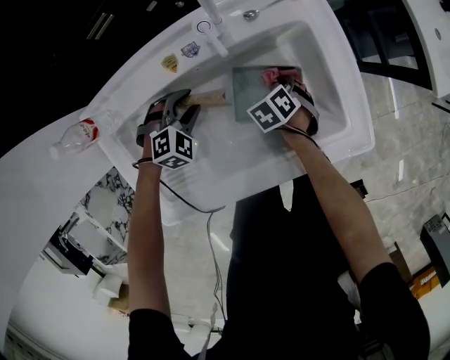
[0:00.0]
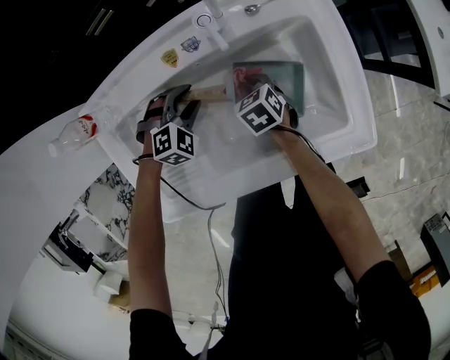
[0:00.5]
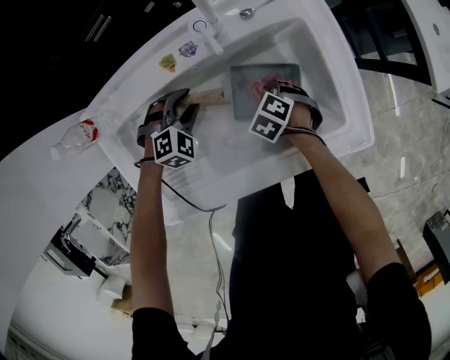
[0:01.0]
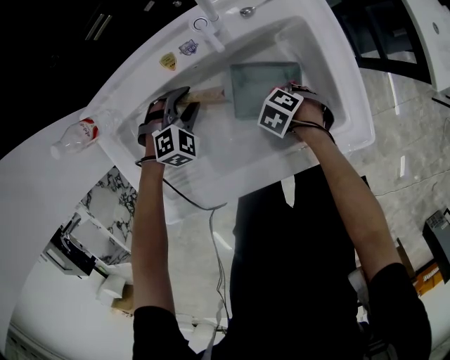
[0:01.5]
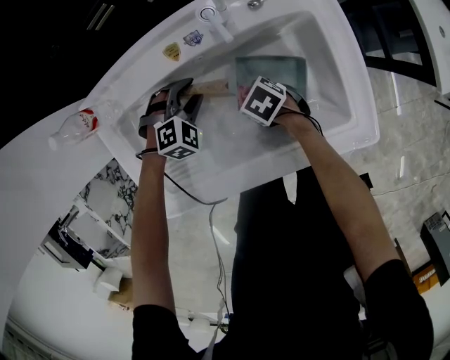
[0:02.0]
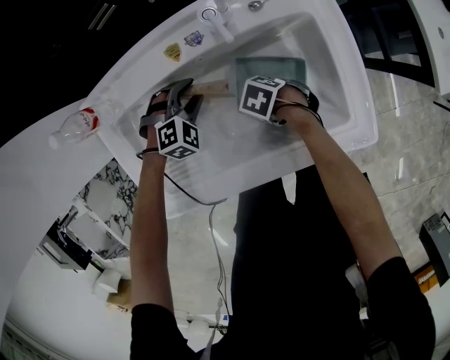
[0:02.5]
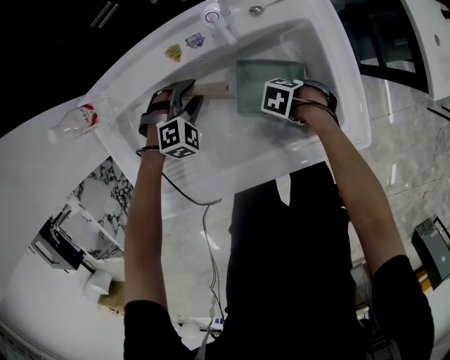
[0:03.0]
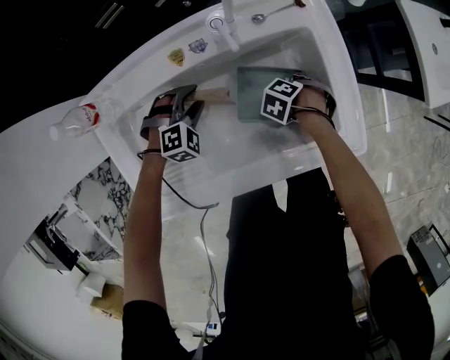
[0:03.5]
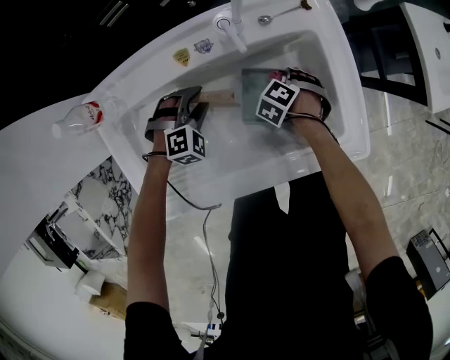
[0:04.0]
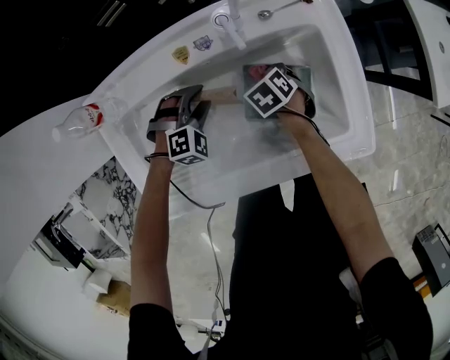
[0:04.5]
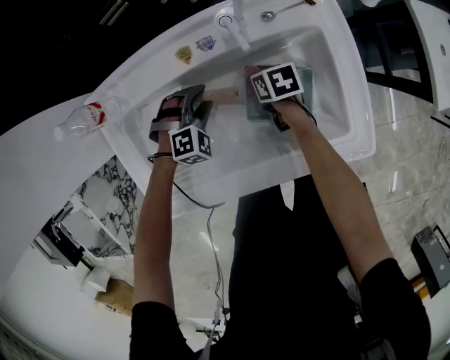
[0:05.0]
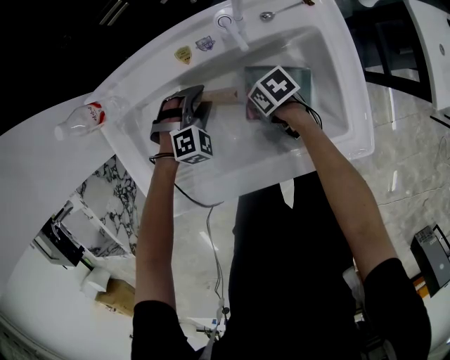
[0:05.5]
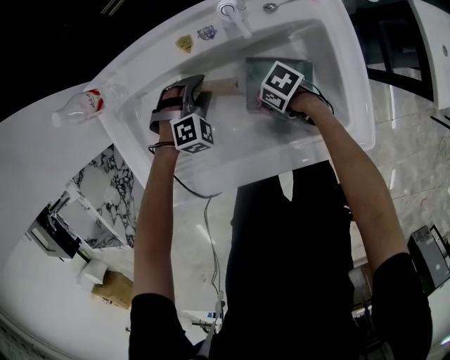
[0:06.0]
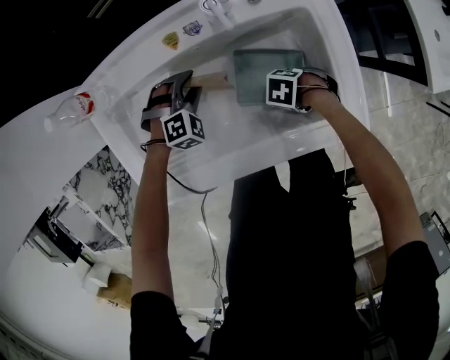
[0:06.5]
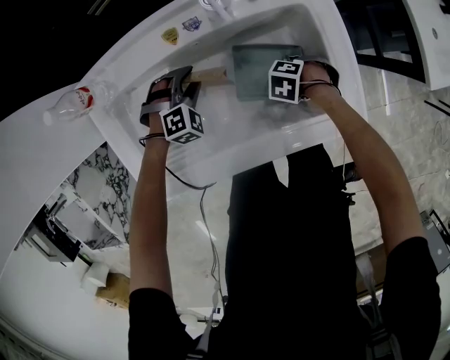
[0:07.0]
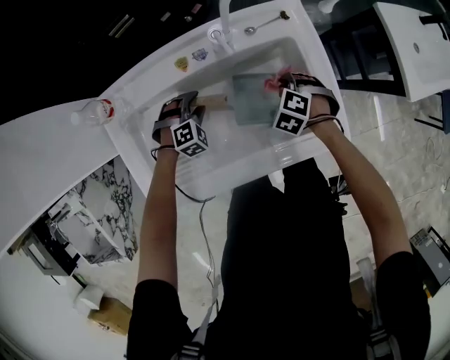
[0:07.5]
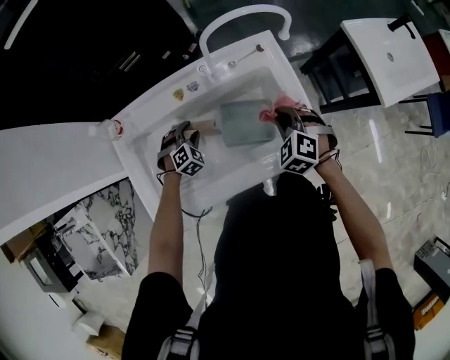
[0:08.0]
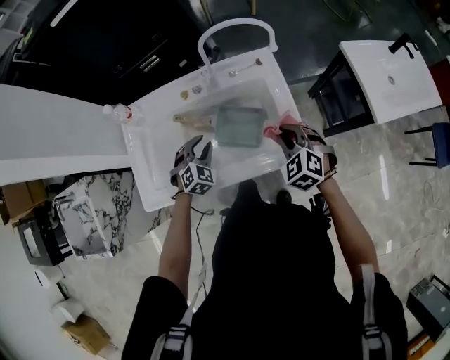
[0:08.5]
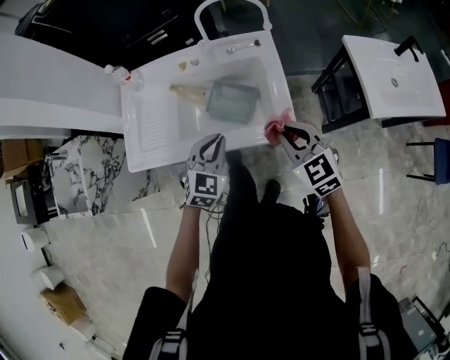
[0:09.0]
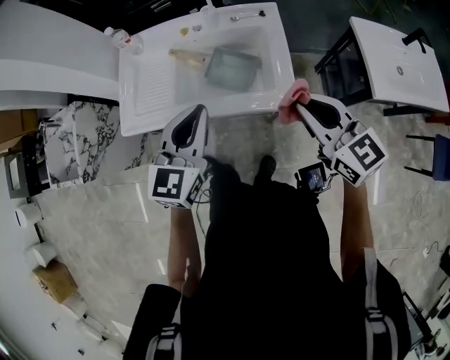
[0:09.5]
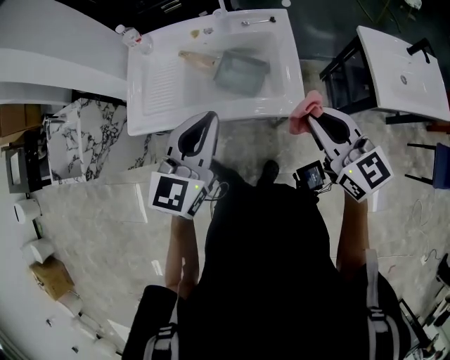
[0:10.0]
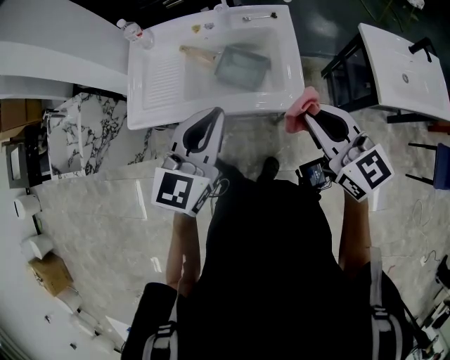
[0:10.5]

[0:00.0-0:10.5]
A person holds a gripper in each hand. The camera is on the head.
0:00.0 to 0:02.0: The right gripper ends up some 15 cm from where it was, and rotates approximately 40 degrees.
0:02.0 to 0:04.0: The right gripper changes place by approximately 15 cm, and swivels about 50 degrees.
0:04.0 to 0:06.5: The right gripper ends up about 10 cm from where it was, and swivels some 40 degrees.
0:06.5 to 0:08.5: The right gripper moves upward, roughly 30 cm, and rotates about 70 degrees, while the left gripper shifts some 15 cm upward, and rotates roughly 30 degrees.
0:08.5 to 0:10.5: Both grippers move upward and backward, roughly 30 cm. The right gripper tips its fingers upward by about 40 degrees, while the left gripper tips its fingers upward by roughly 30 degrees, and closes up.

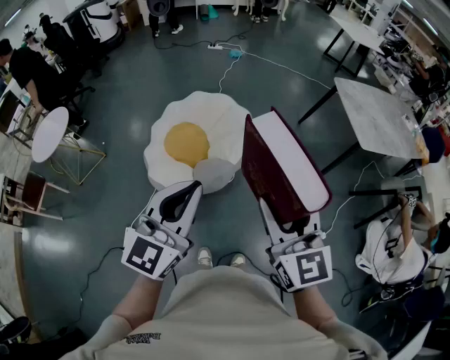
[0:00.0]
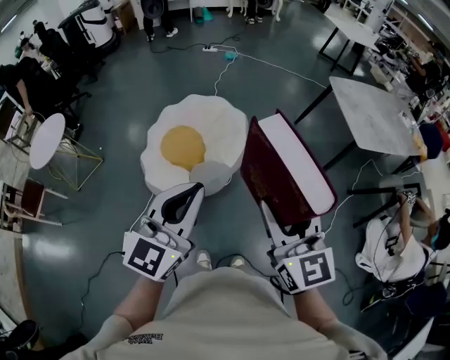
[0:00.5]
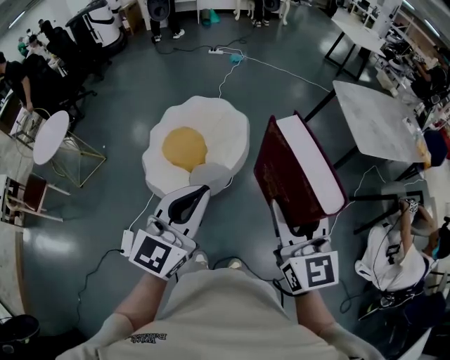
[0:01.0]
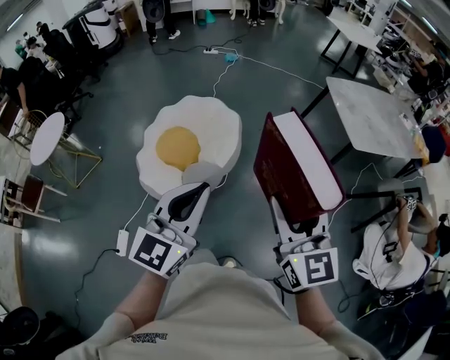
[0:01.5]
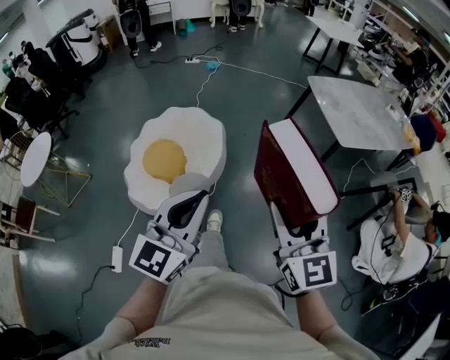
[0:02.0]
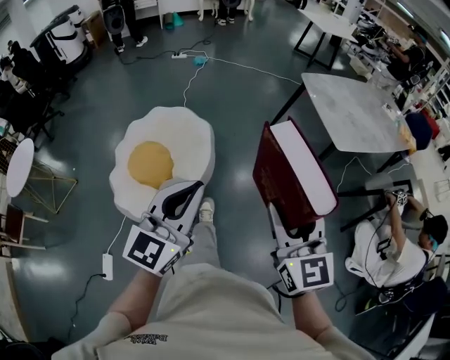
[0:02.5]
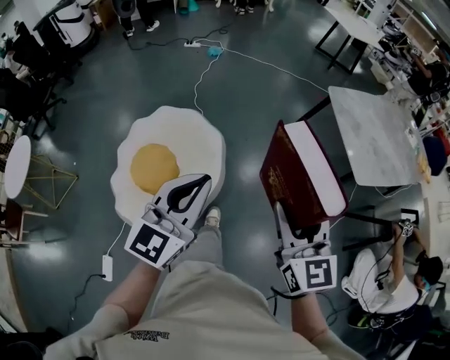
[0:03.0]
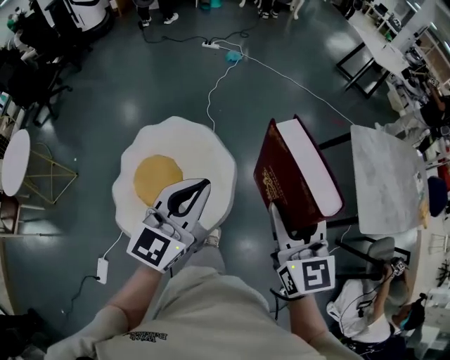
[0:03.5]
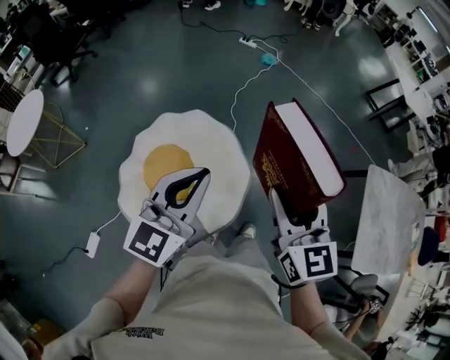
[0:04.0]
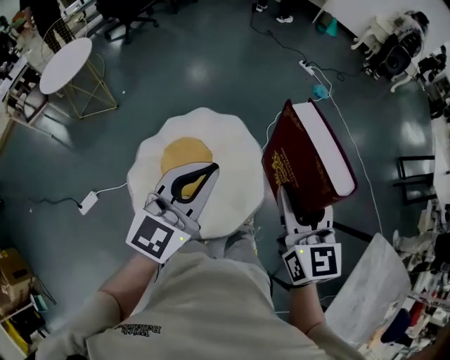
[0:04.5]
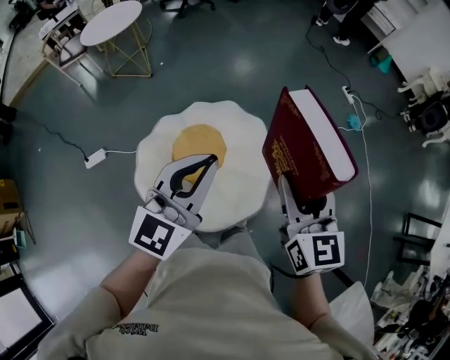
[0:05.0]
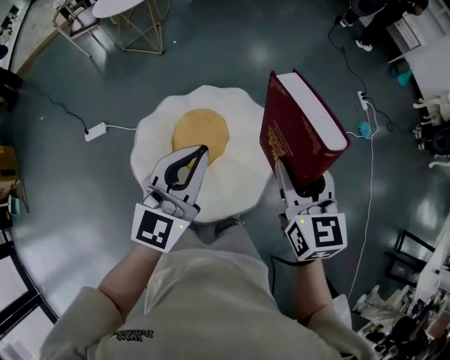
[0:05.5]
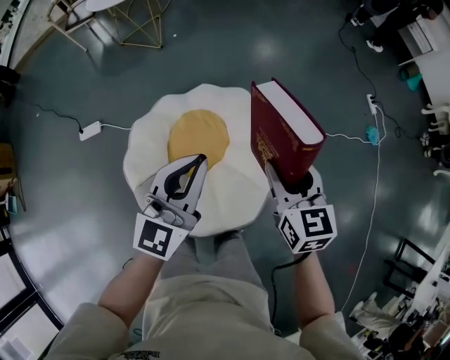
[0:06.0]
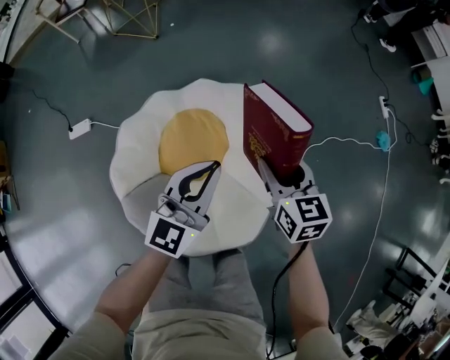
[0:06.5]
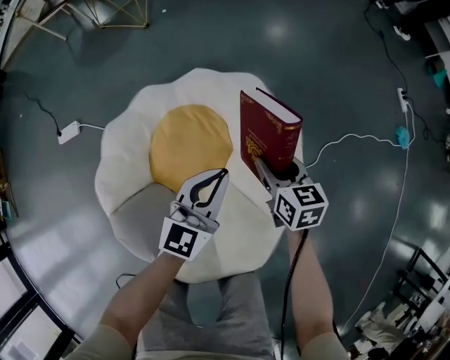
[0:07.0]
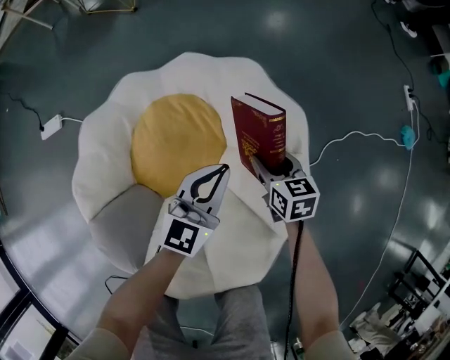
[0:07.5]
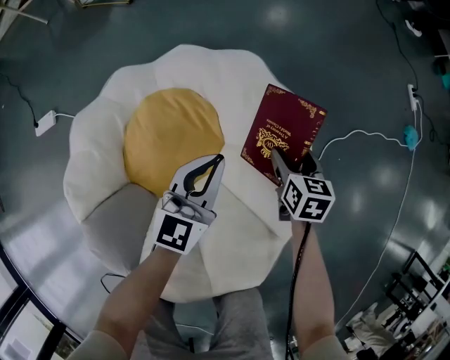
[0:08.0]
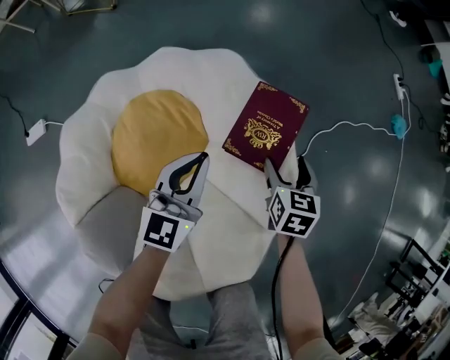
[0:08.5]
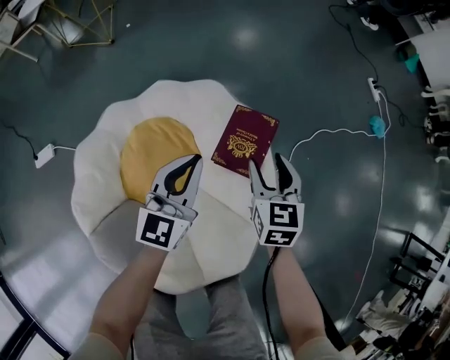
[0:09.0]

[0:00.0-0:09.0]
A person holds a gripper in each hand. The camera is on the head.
0:00.0 to 0:02.0: The two grippers go roughly 15 cm to the right.
0:02.0 to 0:04.5: The two grippers travel together, about 70 cm. The left gripper changes its angle by roughly 40 degrees. The right gripper swivels approximately 40 degrees.
0:04.5 to 0:07.0: The grippers both shift downward by some 60 cm. The right gripper turns by approximately 50 degrees, while the left gripper turns by some 40 degrees.
0:07.0 to 0:09.0: The right gripper travels to the right by some 10 cm, goes downward and returns, roughly 15 cm each way, and rotates about 30 degrees. Meanwhile the left gripper goes downward and returns, about 15 cm each way.

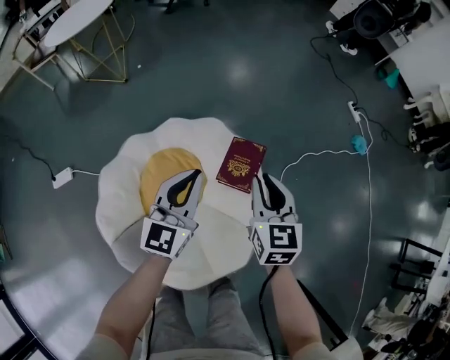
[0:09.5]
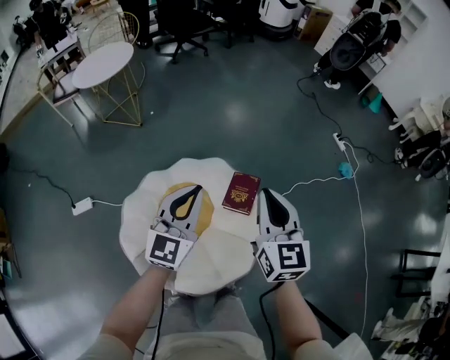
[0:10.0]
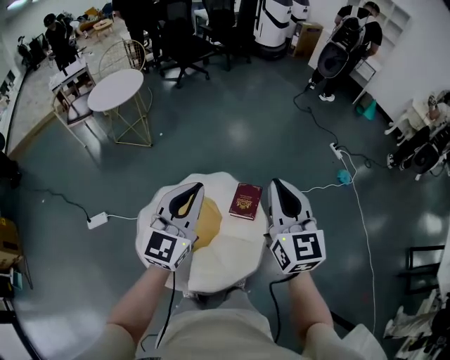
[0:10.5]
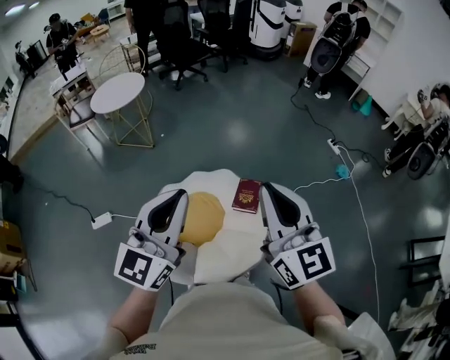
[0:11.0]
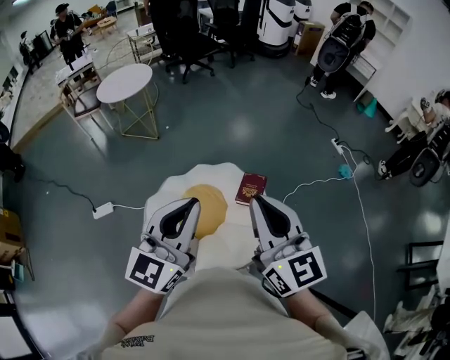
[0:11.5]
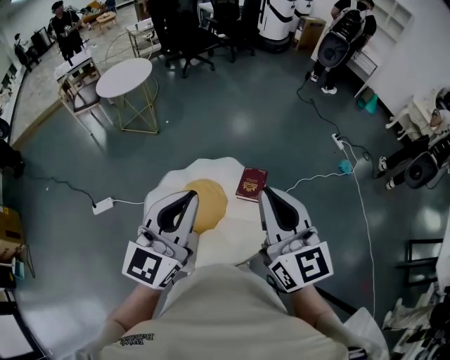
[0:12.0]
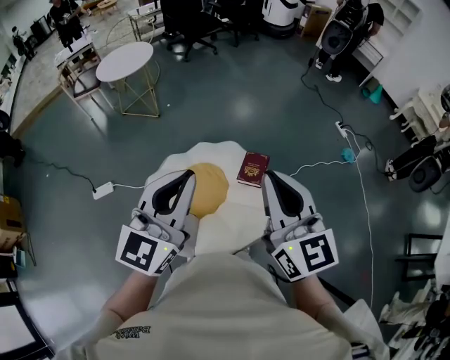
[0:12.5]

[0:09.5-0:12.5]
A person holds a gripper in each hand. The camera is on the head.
0:09.5 to 0:11.0: Both grippers move upward and backward, about 50 cm. The right gripper angles its fingers upward, by about 30 degrees.
0:11.0 to 0:12.5: The grippers make only small movements.

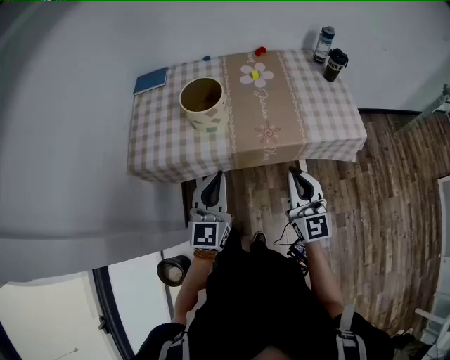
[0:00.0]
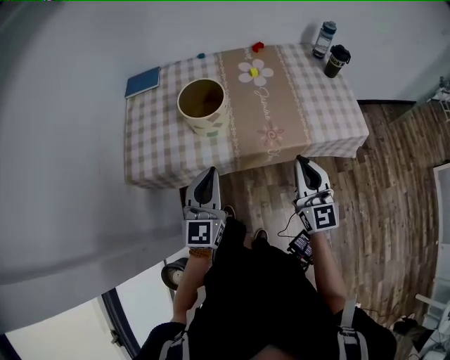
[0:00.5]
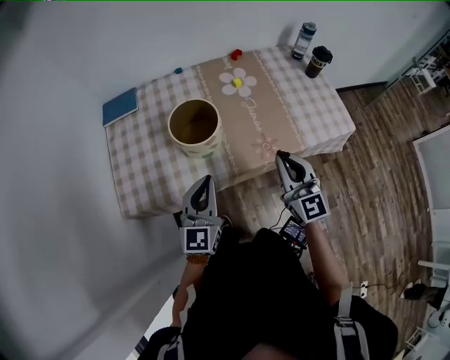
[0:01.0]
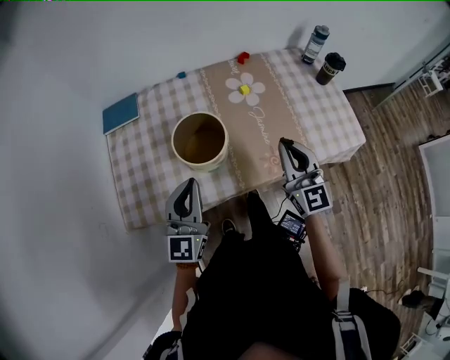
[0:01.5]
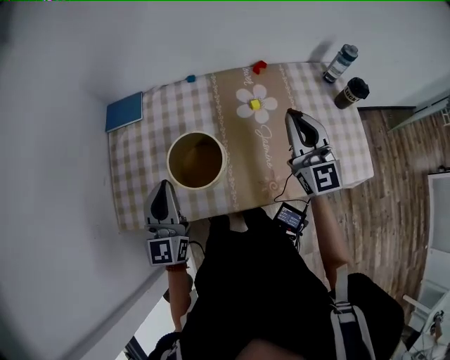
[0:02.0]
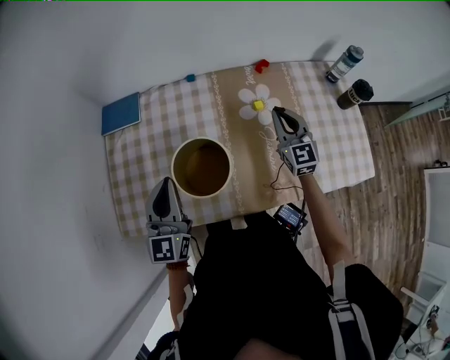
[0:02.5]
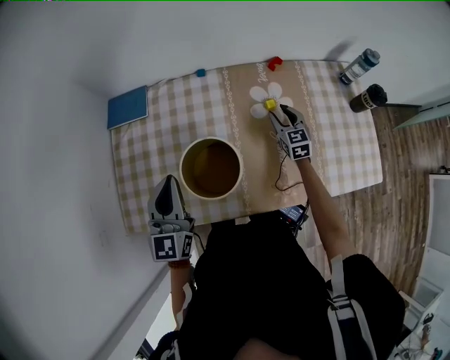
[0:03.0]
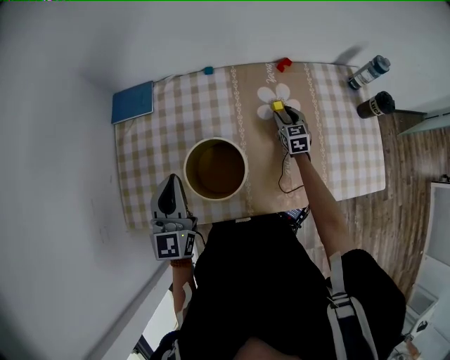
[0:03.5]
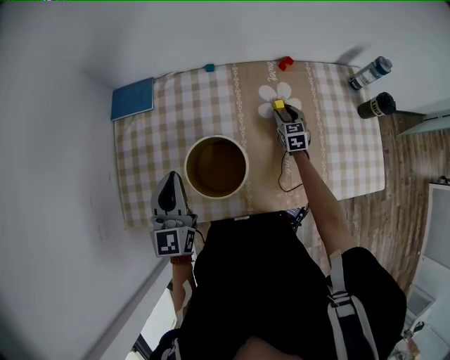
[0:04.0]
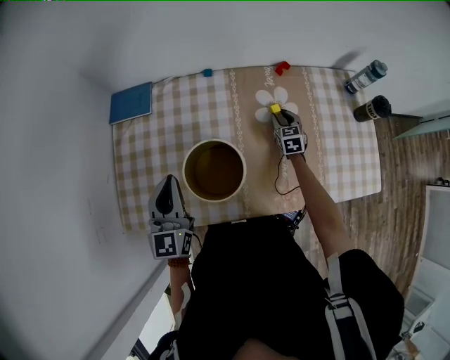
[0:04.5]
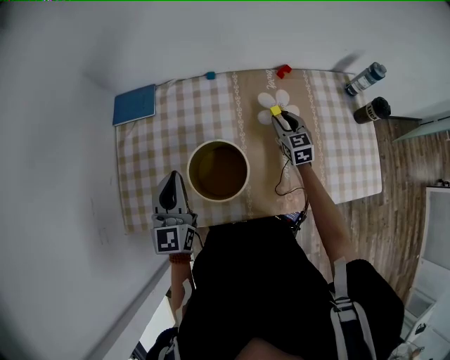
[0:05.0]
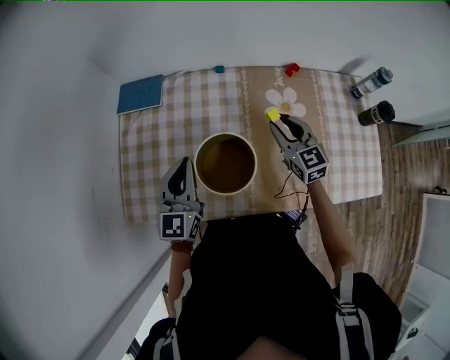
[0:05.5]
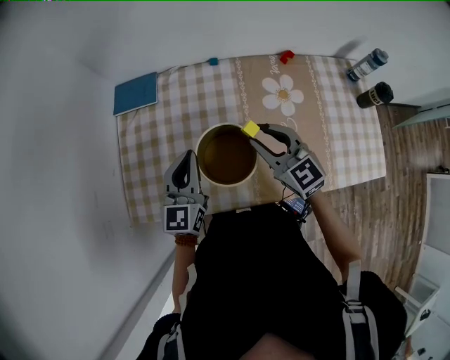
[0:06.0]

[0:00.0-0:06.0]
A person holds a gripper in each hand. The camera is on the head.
0:00.0 to 0:02.0: The left gripper goes approximately 35 cm forward and to the left. Meanwhile the right gripper goes some 40 cm forward.
0:02.0 to 0:04.0: The right gripper heads downward and forward, covering roughly 40 cm, points its fingers some 40 degrees further downward, and opens; the left gripper goes about 5 cm forward.
0:04.0 to 0:06.0: The right gripper moves upward, to the left and backward, roughly 35 cm, and swivels roughly 40 degrees.
